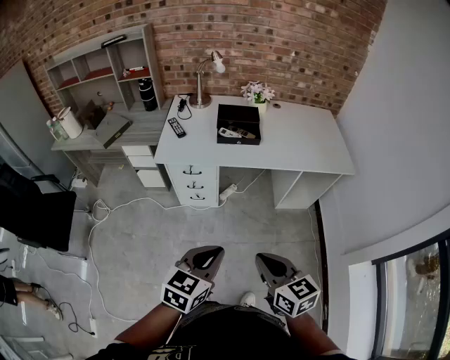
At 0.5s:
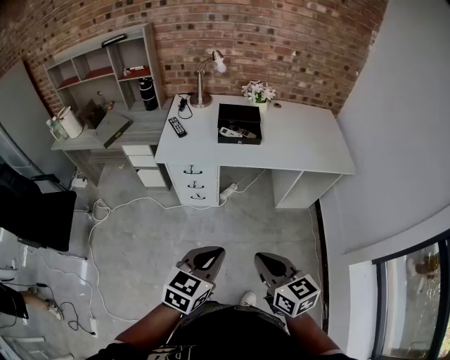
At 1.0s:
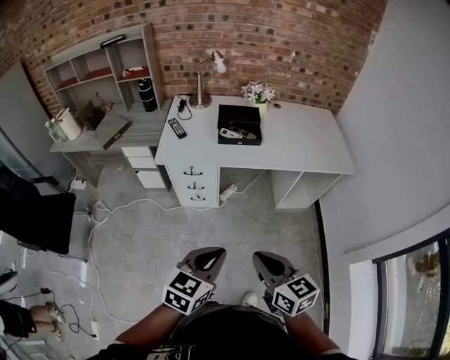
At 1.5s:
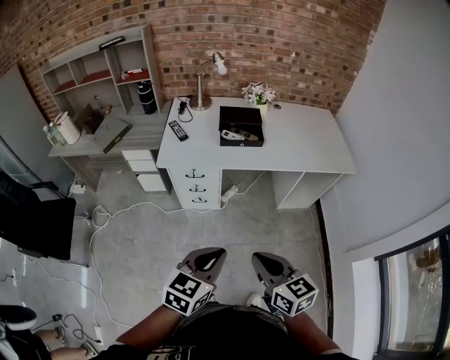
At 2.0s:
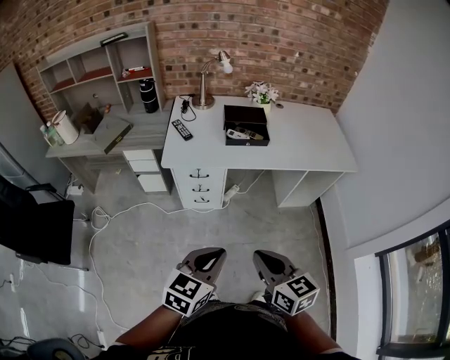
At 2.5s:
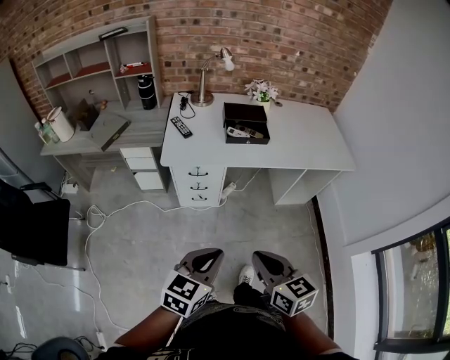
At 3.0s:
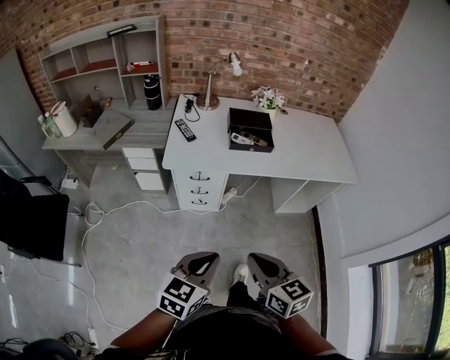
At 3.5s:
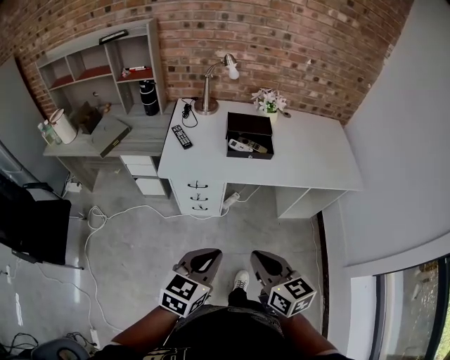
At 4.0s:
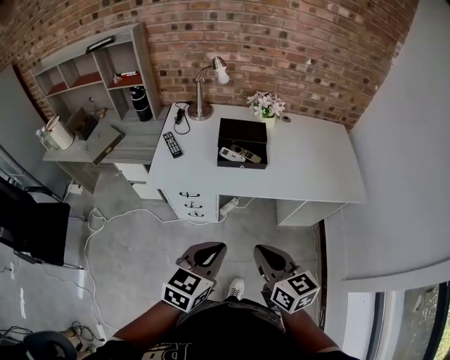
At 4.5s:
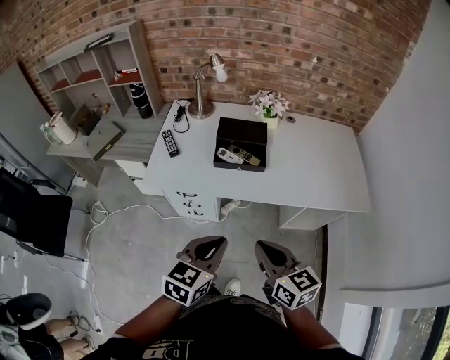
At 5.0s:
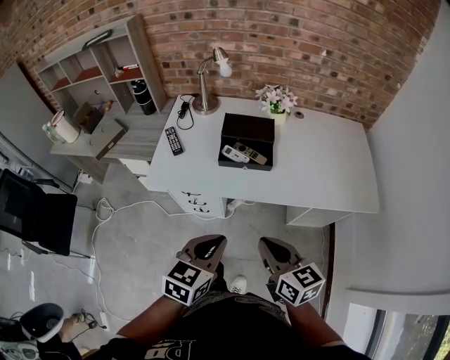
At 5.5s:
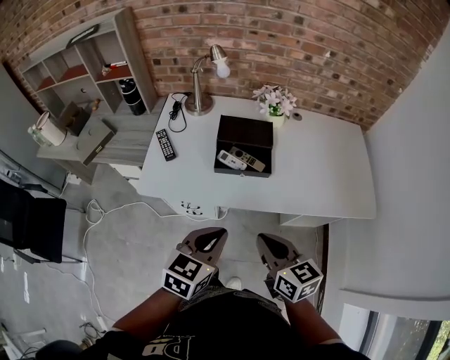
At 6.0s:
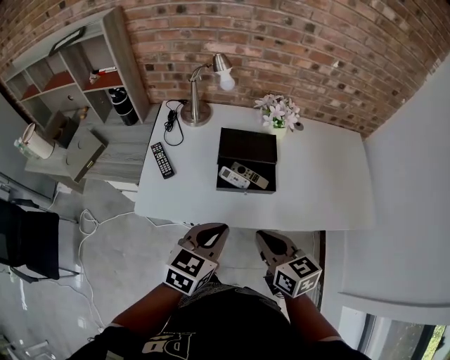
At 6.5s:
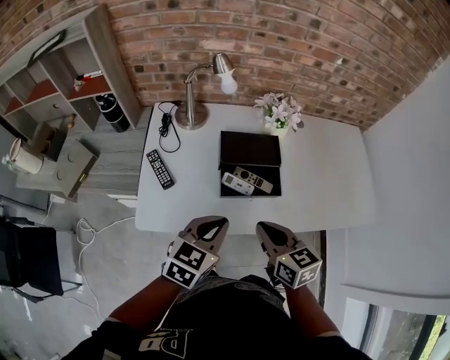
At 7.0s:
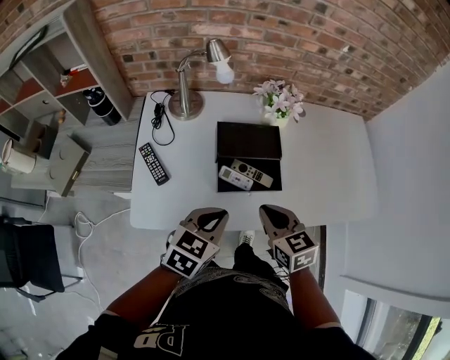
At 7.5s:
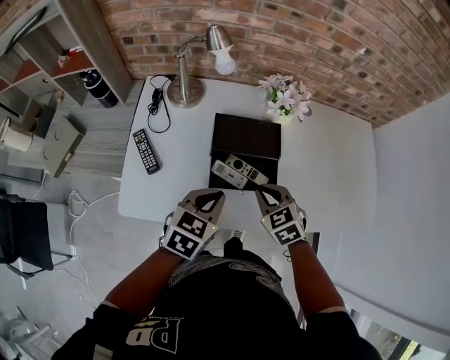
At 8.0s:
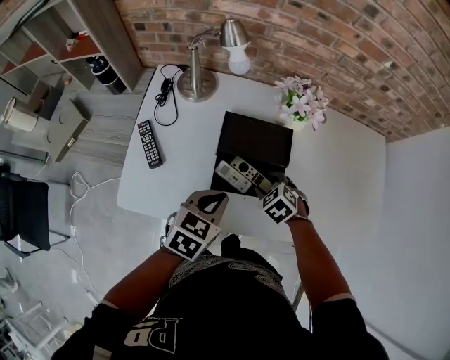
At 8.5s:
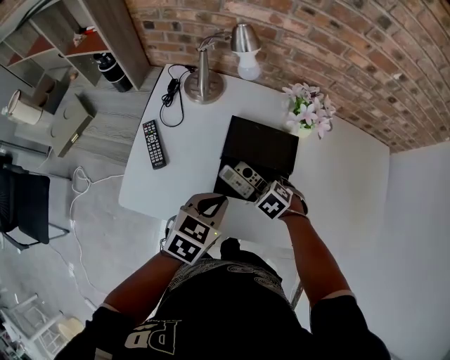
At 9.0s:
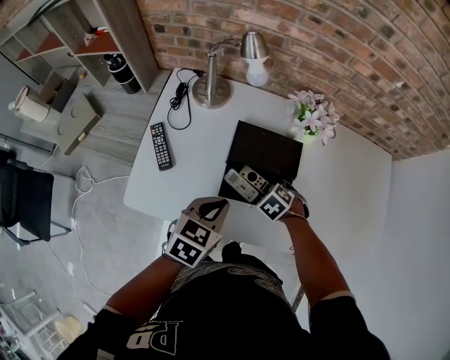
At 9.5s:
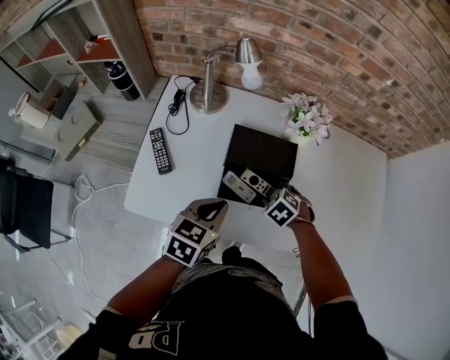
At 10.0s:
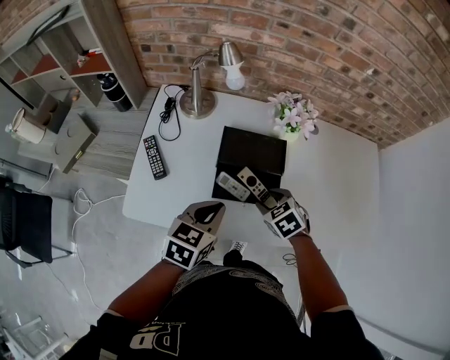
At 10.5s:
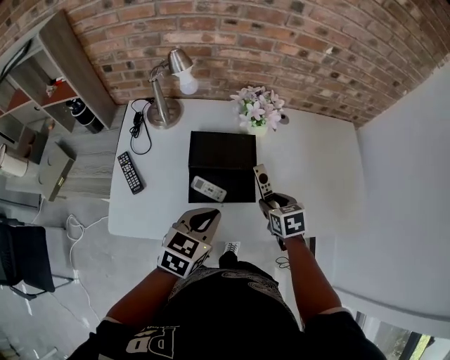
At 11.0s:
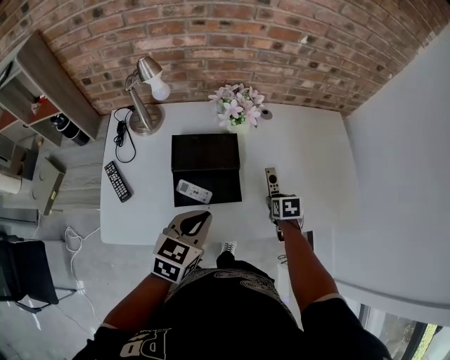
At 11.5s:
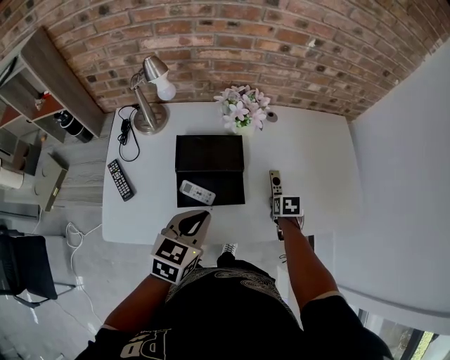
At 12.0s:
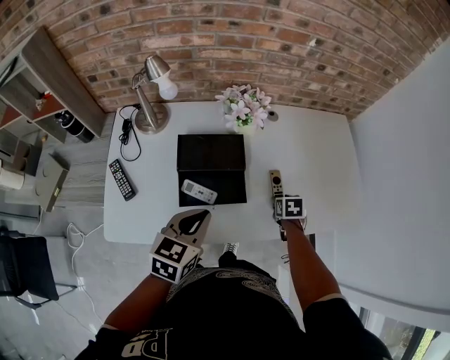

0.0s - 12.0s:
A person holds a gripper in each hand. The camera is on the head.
0.0s - 2.0s: Both grippers move to the left, some 10 cm.
2.0s - 4.0s: Both grippers travel together forward and to the right, approximately 20 cm.
4.0s - 6.0s: The two grippers go about 25 cm forward.
6.0s - 8.0s: The right gripper heads forward and downward, covering roughly 30 cm, tips its fingers downward by about 40 degrees, and opens its fingers. Meanwhile the left gripper moves forward and downward, about 20 cm.
8.0s - 10.0s: The right gripper ends up roughly 5 cm from where it was.
10.0s - 12.0s: The left gripper is displaced to the right by approximately 5 cm; the right gripper moves to the right, about 20 cm, and rotates around the line of its fingers by about 50 degrees, clockwise from behind.

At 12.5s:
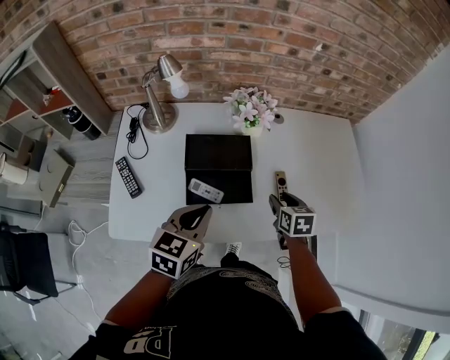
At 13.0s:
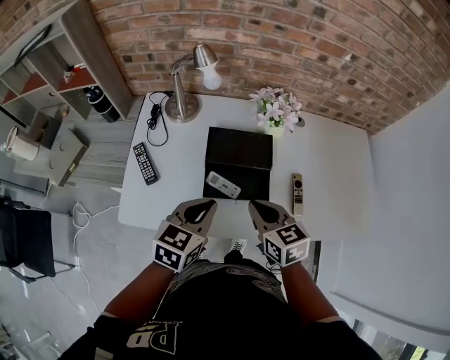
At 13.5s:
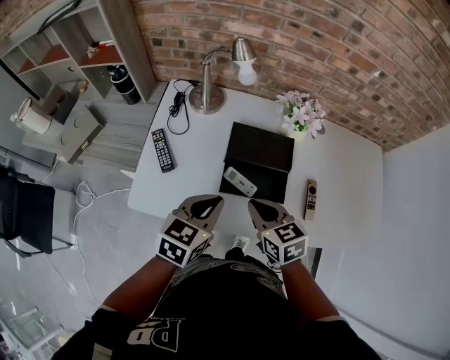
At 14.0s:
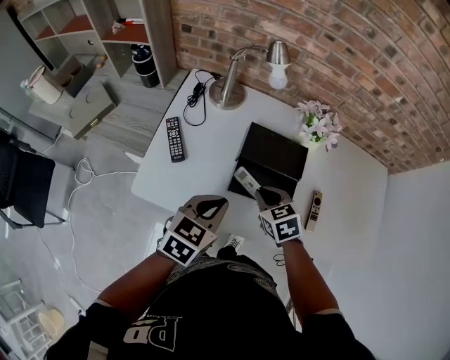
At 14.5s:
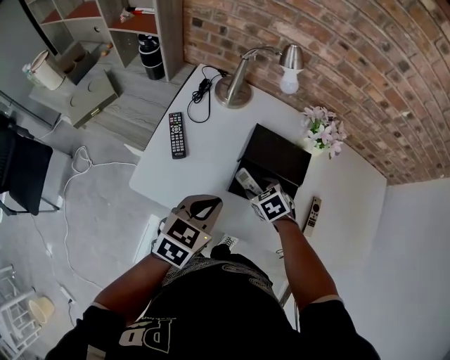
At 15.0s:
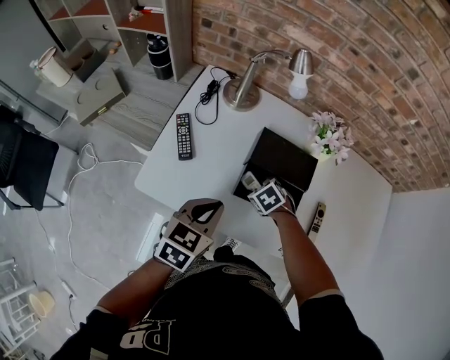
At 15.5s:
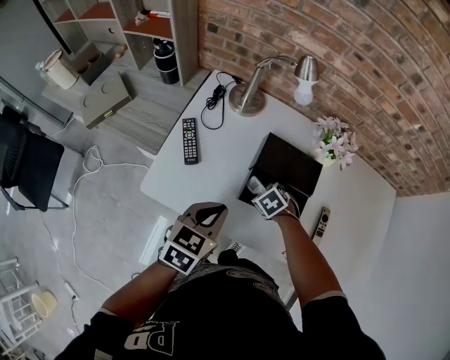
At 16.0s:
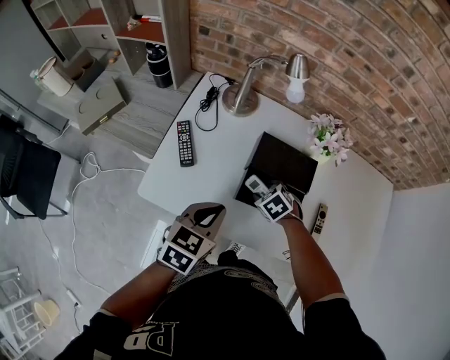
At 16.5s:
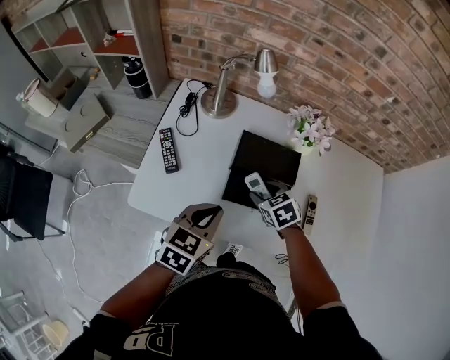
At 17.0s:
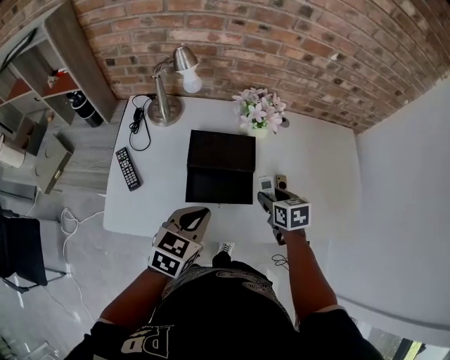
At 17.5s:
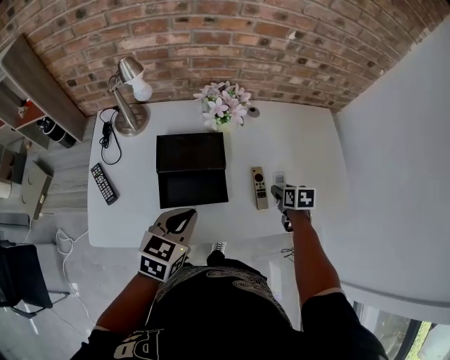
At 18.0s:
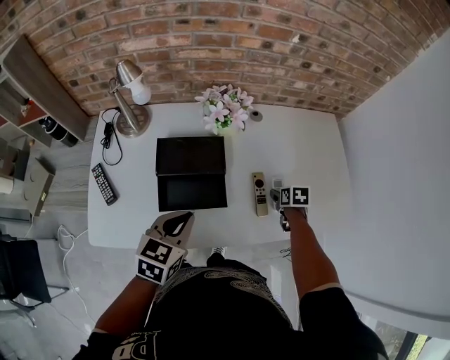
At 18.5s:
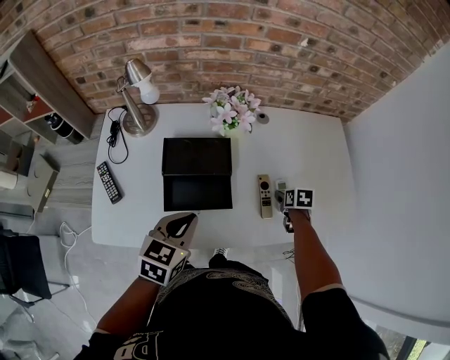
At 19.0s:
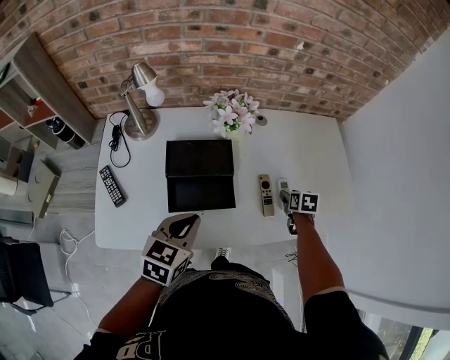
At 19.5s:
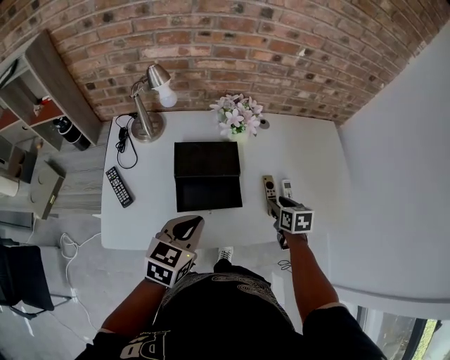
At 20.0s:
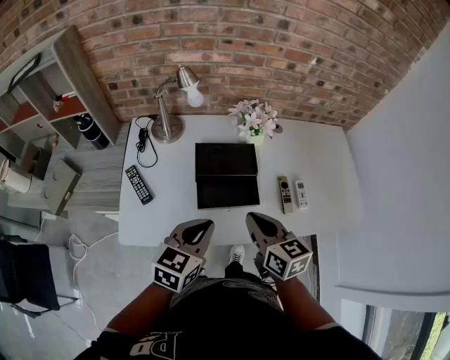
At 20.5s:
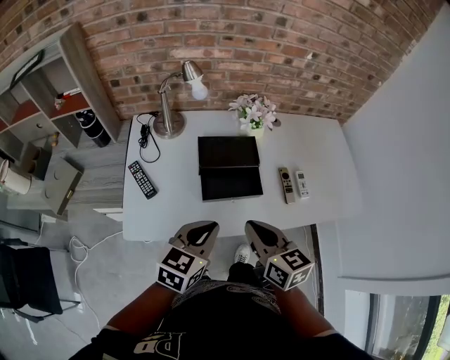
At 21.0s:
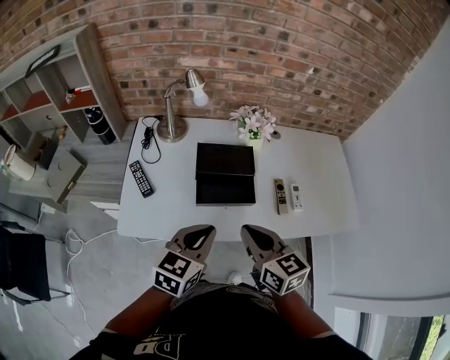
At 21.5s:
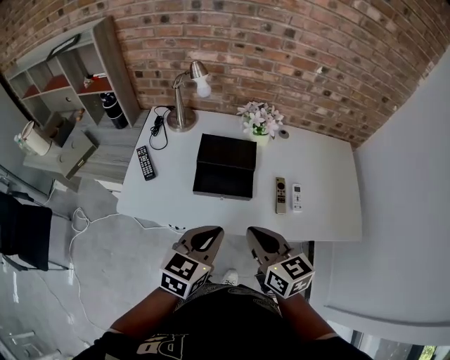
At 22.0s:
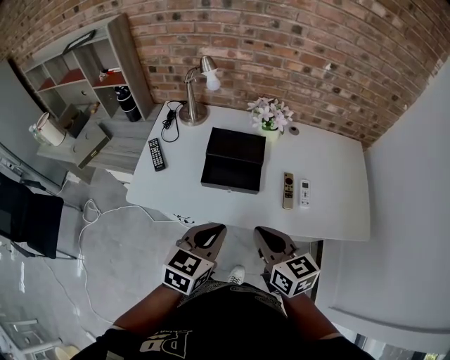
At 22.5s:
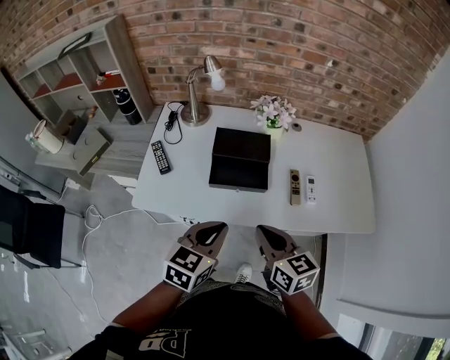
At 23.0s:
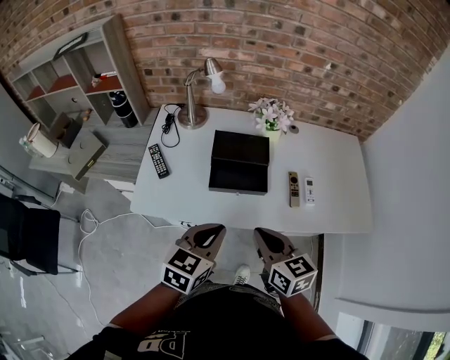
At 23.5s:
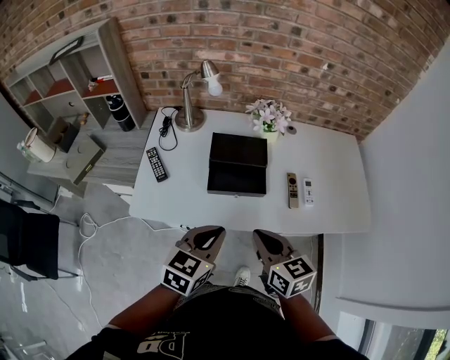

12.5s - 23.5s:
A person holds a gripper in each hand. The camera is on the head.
12.5s - 14.5s: The left gripper changes place by roughly 10 cm. The right gripper ends up approximately 25 cm from where it was, rotates around the line of its fingers by roughly 50 degrees, counterclockwise from behind, and closes, then reopens.
14.5s - 16.0s: The grippers make only small movements.
16.0s - 18.0s: The left gripper changes place by roughly 15 cm. Meanwhile the right gripper reaches about 10 cm upward, then returns, and rotates around the line of its fingers by roughly 70 degrees, clockwise from behind.
18.0s - 20.0s: The left gripper heads backward and to the left, covering roughly 10 cm. Meanwhile the right gripper moves to the left, upward and backward, roughly 40 cm, angles its fingers upward, by about 40 degrees, and closes.
20.0s - 21.5s: The right gripper heads backward and to the right, covering roughly 10 cm. The left gripper heads to the right and backward, covering about 10 cm.
21.5s - 23.5s: The left gripper moves roughly 5 cm.

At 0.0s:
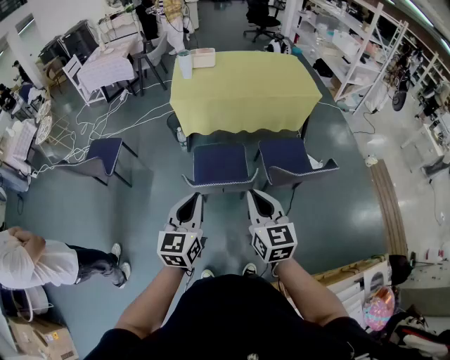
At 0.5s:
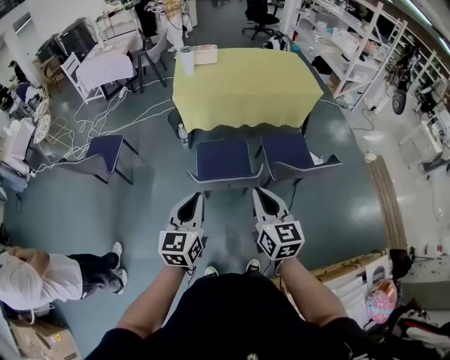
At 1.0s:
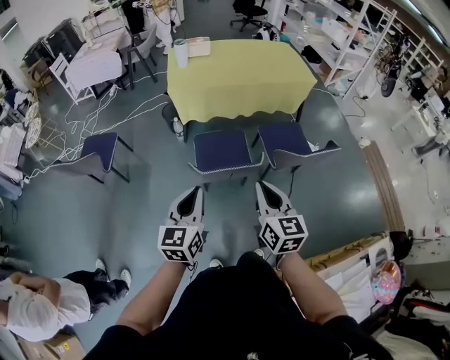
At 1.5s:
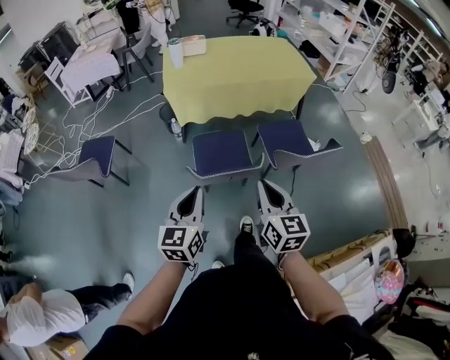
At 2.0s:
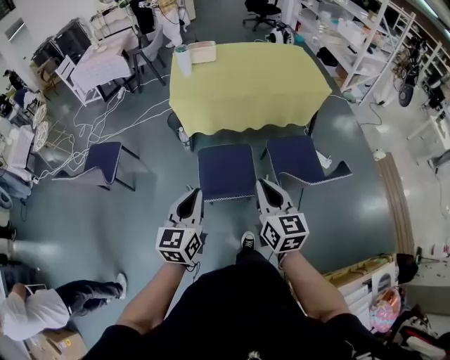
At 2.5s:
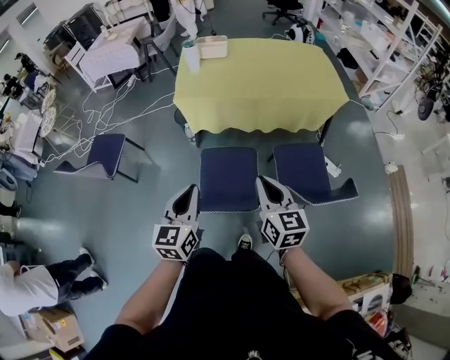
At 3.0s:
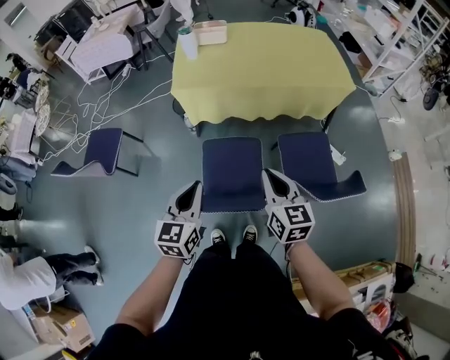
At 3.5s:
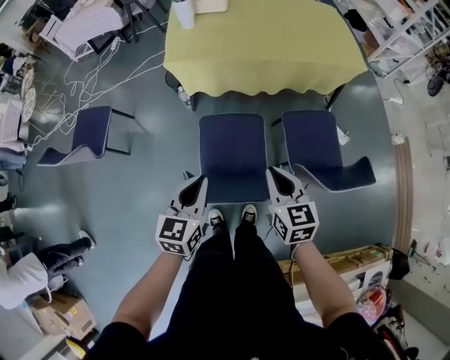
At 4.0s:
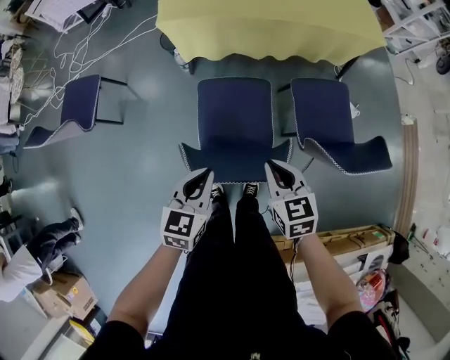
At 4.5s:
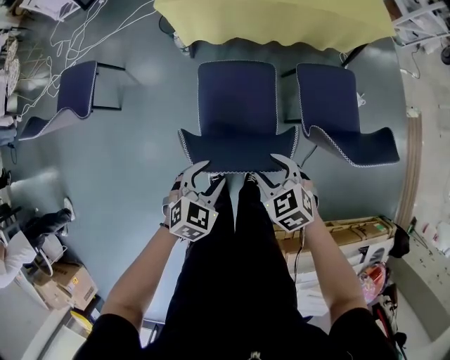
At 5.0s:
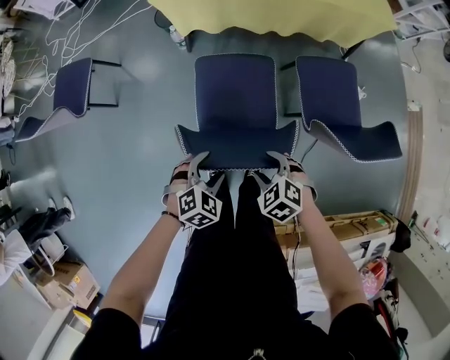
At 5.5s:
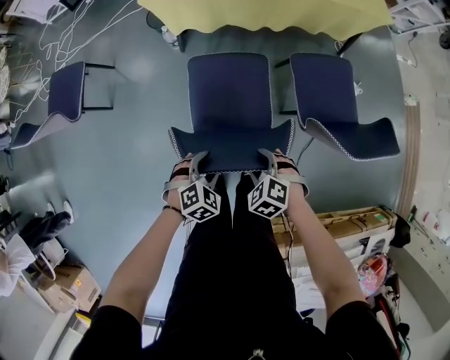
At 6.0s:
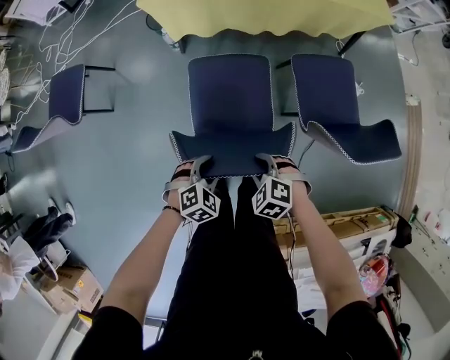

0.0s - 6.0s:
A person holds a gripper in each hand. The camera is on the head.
0.0s - 2.0s: The two grippers go approximately 10 cm forward.
2.0s - 4.0s: The grippers both shift downward and forward by about 25 cm. The left gripper turns by roughly 20 degrees; the right gripper swivels some 30 degrees.
4.0s - 6.0s: Both grippers travel together downward, some 20 cm. The right gripper changes its angle by roughly 50 degrees, and opens its fingers. Meanwhile the left gripper swivels approximately 50 degrees, and opens.
